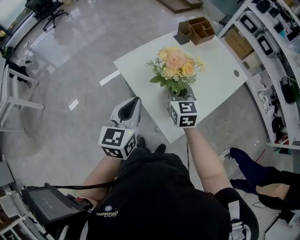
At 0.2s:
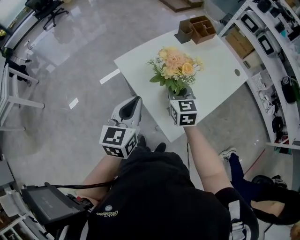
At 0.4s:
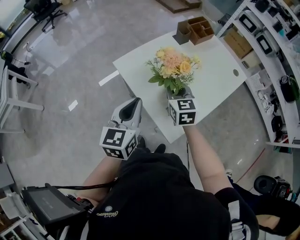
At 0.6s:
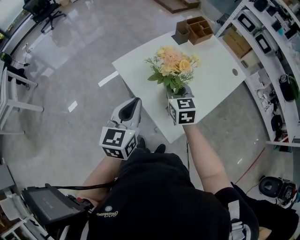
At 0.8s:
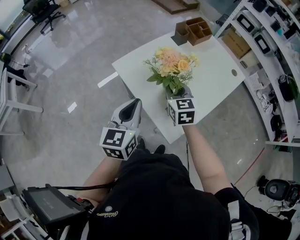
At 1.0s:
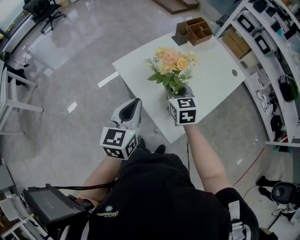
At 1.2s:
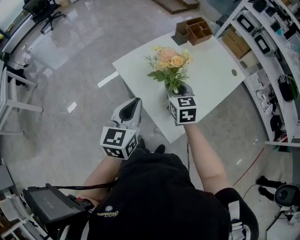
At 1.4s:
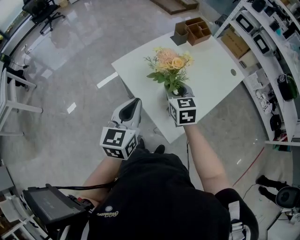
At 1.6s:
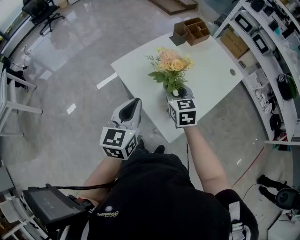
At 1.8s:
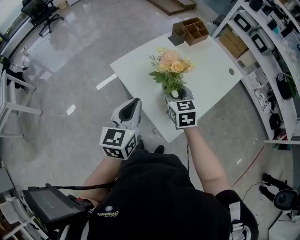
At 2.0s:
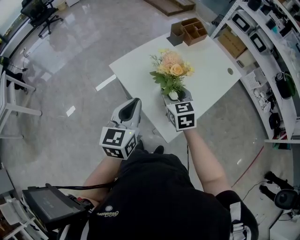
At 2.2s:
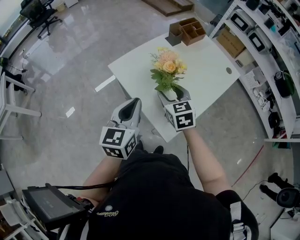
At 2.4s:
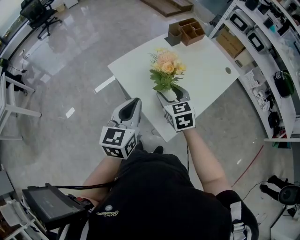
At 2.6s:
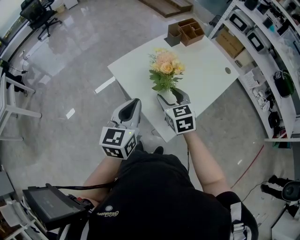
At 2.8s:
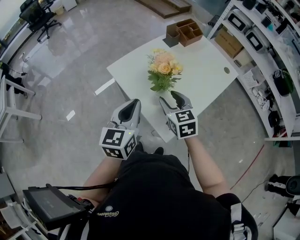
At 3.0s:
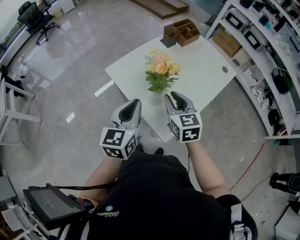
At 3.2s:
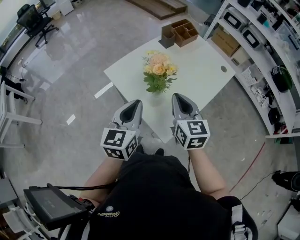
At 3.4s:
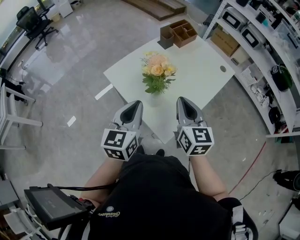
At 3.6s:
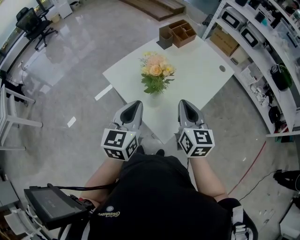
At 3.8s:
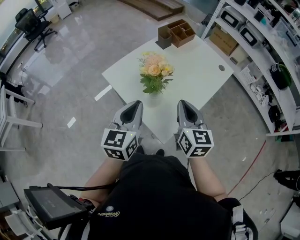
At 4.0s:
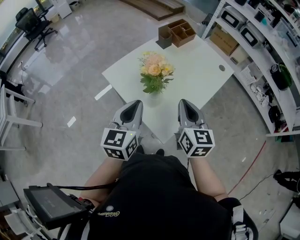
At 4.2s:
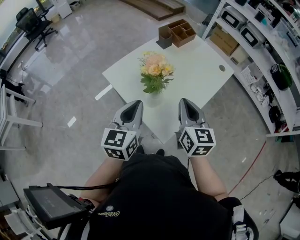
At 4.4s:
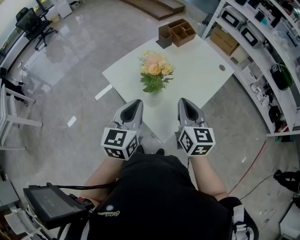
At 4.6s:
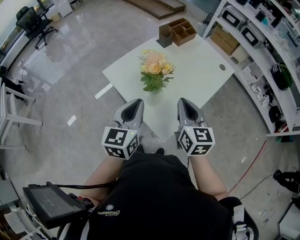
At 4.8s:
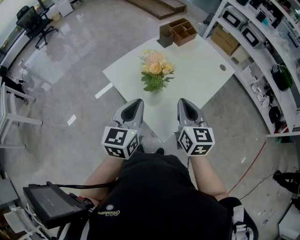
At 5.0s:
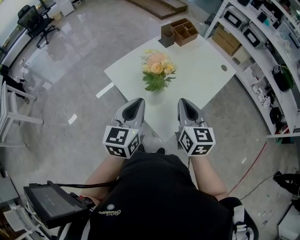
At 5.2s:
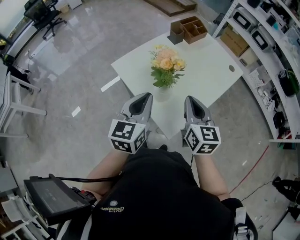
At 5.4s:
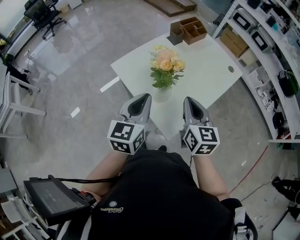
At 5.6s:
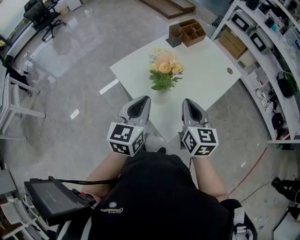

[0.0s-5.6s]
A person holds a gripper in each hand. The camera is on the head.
0.0s to 1.4s: The grippers stay close to where they were, moving slightly.
1.4s to 2.8s: The right gripper moves backward, roughly 5 cm, and opens up.
2.8s to 4.2s: The right gripper travels to the right and upward by approximately 10 cm, changes its angle by some 30 degrees, and closes.
4.2s to 5.6s: The grippers stay close to where they were, moving slightly.

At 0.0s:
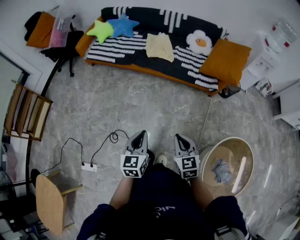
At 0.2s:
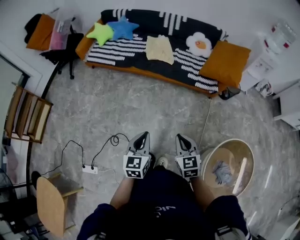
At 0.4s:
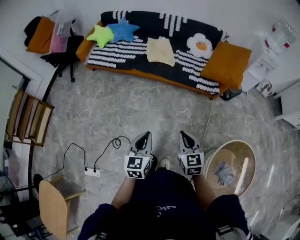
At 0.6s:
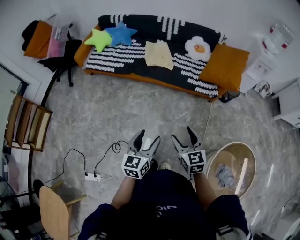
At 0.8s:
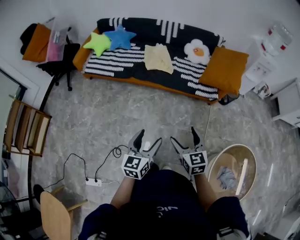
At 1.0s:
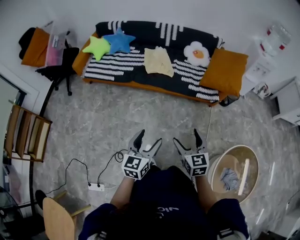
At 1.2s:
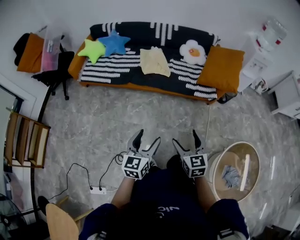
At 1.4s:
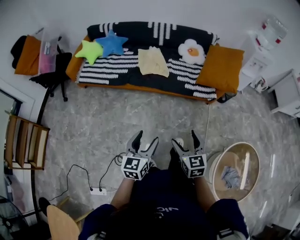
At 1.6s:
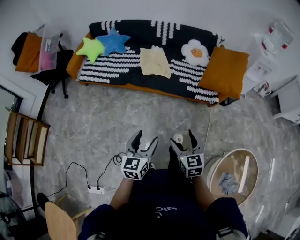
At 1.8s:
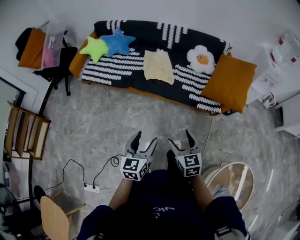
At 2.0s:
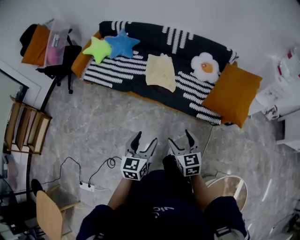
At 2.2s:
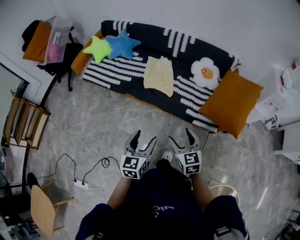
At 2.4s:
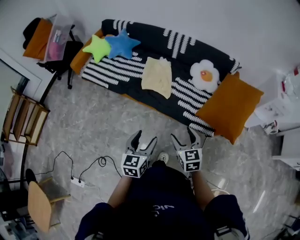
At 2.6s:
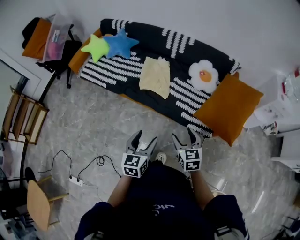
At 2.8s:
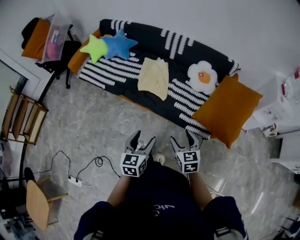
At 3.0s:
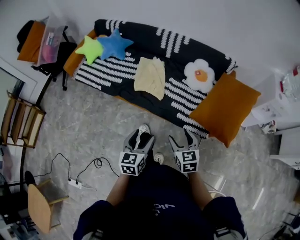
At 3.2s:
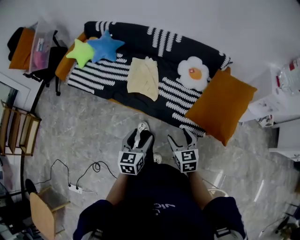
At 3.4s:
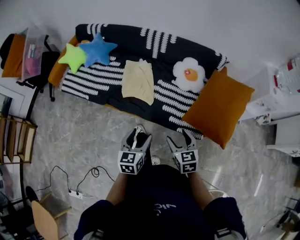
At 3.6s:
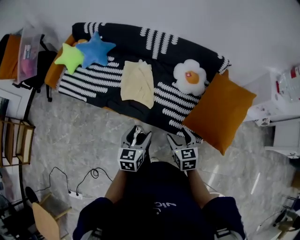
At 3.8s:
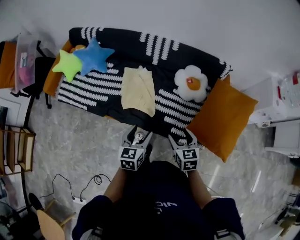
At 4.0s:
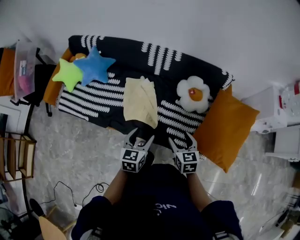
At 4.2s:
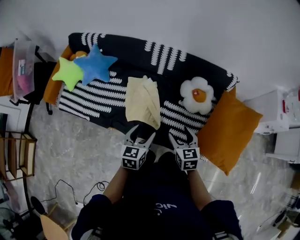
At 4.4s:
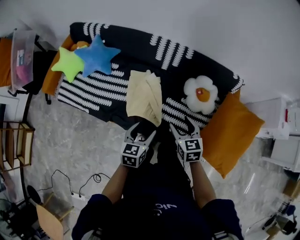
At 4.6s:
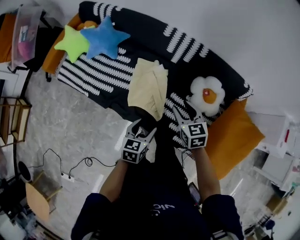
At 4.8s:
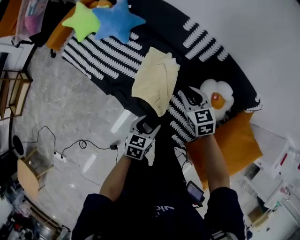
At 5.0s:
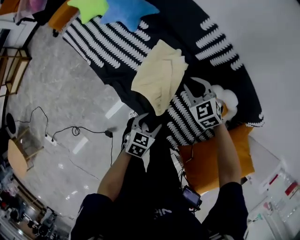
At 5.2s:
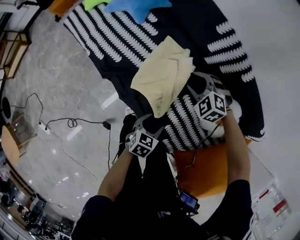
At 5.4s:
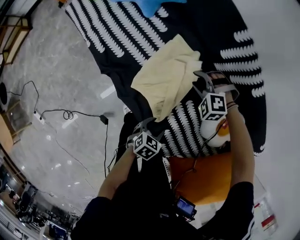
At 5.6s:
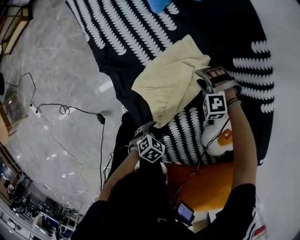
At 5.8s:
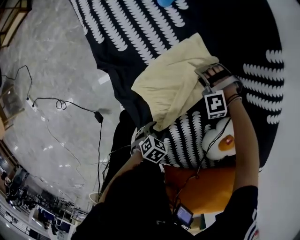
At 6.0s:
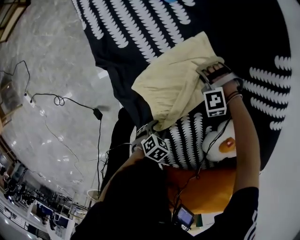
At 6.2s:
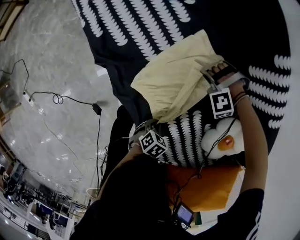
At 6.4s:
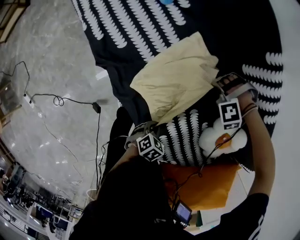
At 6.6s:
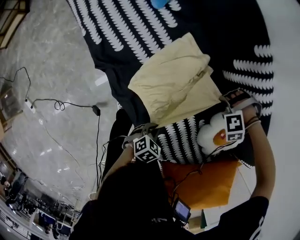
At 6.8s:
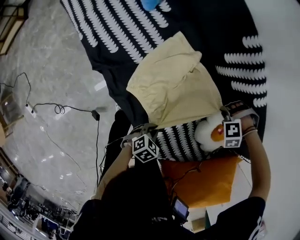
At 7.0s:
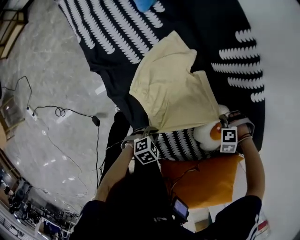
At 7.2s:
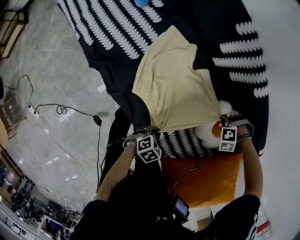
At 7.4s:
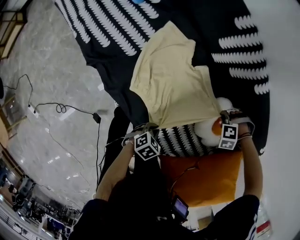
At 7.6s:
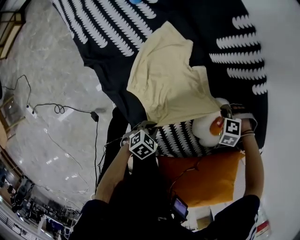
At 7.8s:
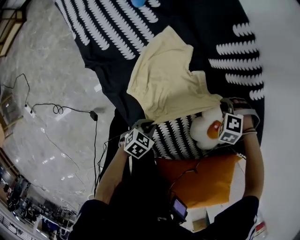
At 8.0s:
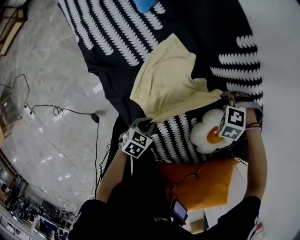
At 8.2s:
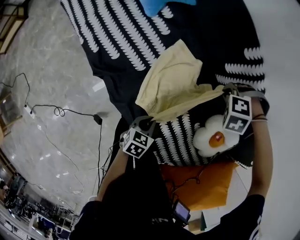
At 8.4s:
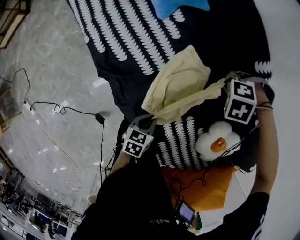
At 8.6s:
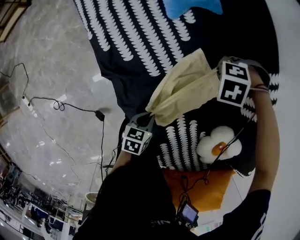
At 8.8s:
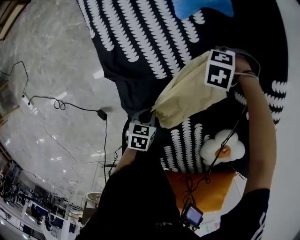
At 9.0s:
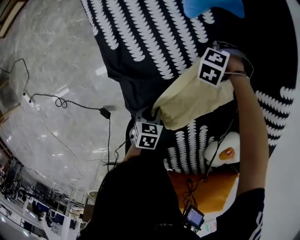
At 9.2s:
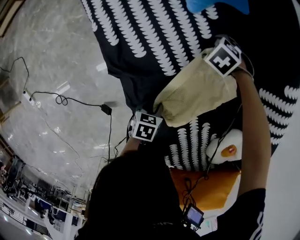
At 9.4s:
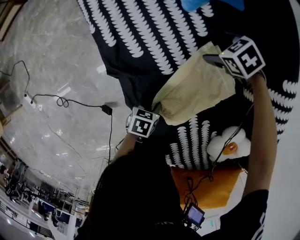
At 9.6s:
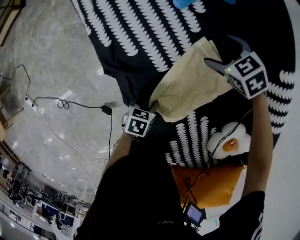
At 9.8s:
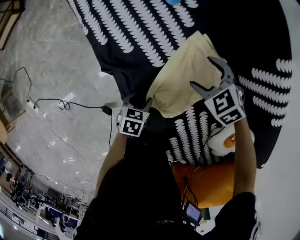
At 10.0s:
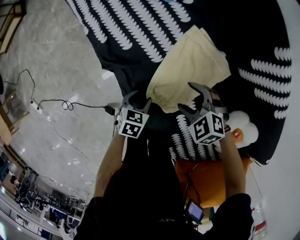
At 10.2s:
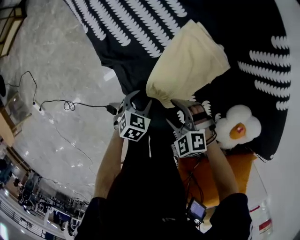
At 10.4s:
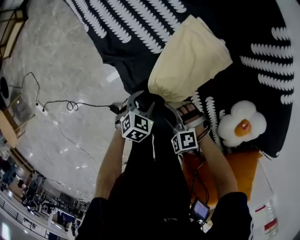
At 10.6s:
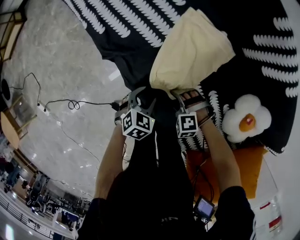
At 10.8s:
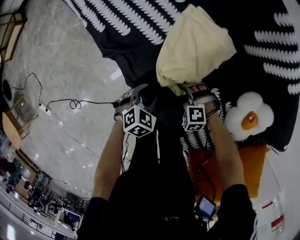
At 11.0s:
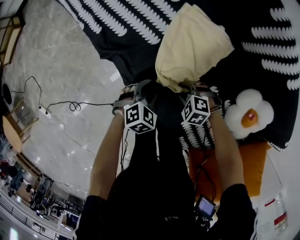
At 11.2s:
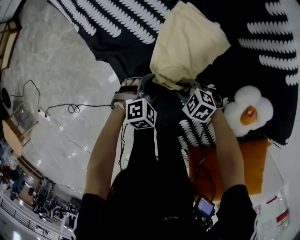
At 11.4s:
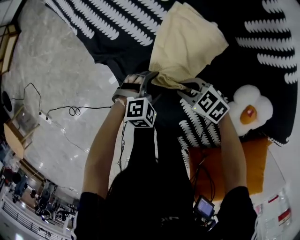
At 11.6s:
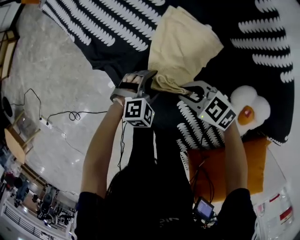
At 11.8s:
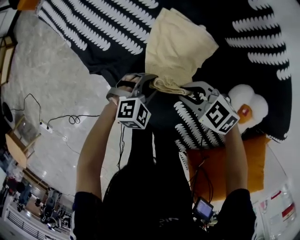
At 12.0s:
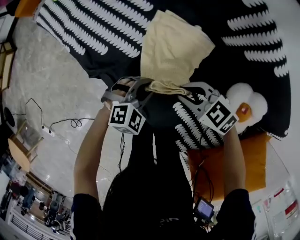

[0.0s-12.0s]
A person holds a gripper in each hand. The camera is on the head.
0.0s to 1.6s: Both grippers move forward, some 15 cm. The left gripper opens its fingers; the right gripper opens.
1.6s to 3.0s: The two grippers go approximately 30 cm forward and to the right.
3.0s to 4.4s: Both grippers move forward, some 35 cm.
4.4s to 6.0s: Both grippers move downward, some 40 cm. The left gripper tips its fingers downward by about 40 degrees. The right gripper rolls counterclockwise, seen from behind, by about 130 degrees, and closes up.
6.0s to 7.6s: The right gripper shifts by some 30 cm, and changes its angle by roughly 40 degrees, while the left gripper is displaced upward by approximately 10 cm, and closes.
7.6s to 9.0s: The right gripper changes place by approximately 50 cm. The left gripper ends up roughly 25 cm from where it was, and turns by approximately 40 degrees.
9.0s to 10.4s: The right gripper ends up roughly 40 cm from where it was, changes its angle by roughly 40 degrees, and opens its fingers. The left gripper changes place by roughly 5 cm, and turns by roughly 40 degrees.
10.4s to 12.0s: The left gripper changes place by approximately 10 cm, rotates around the line of its fingers by some 50 degrees, clockwise from behind, and closes its fingers. The right gripper changes place by about 15 cm, rotates around the line of its fingers by roughly 50 degrees, clockwise from behind, and closes its fingers.

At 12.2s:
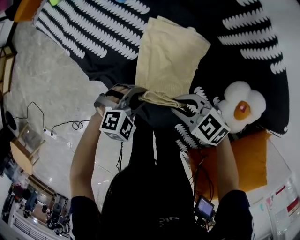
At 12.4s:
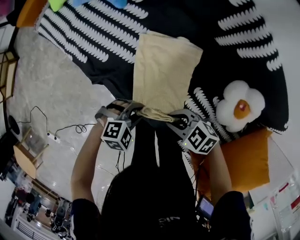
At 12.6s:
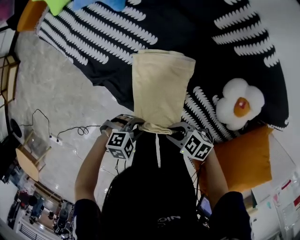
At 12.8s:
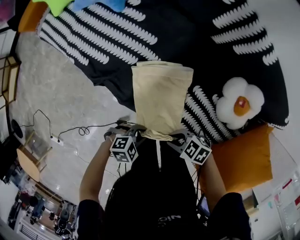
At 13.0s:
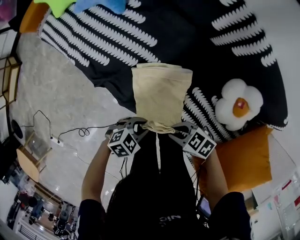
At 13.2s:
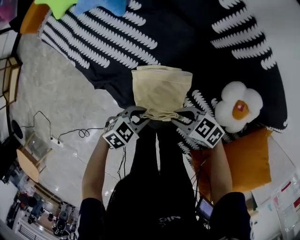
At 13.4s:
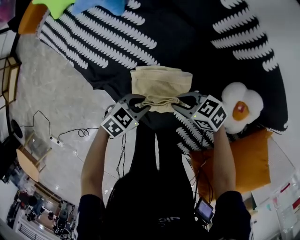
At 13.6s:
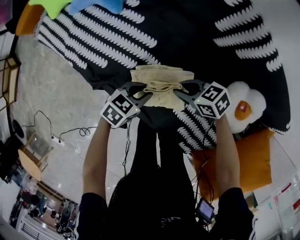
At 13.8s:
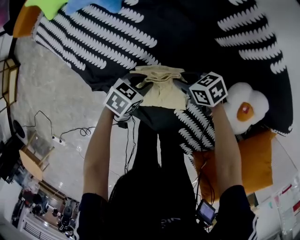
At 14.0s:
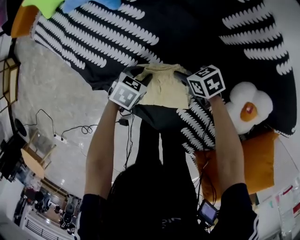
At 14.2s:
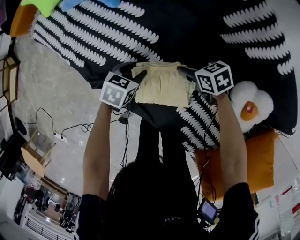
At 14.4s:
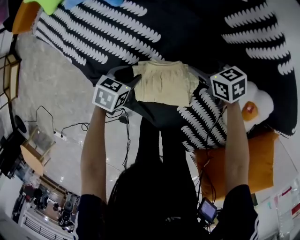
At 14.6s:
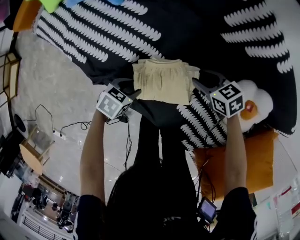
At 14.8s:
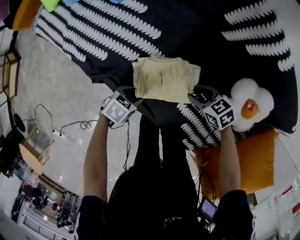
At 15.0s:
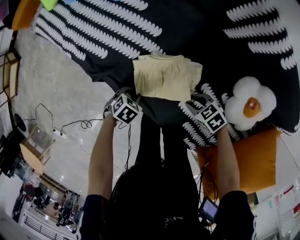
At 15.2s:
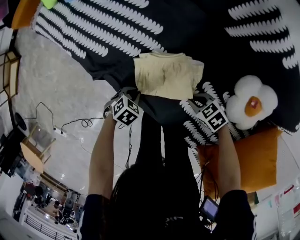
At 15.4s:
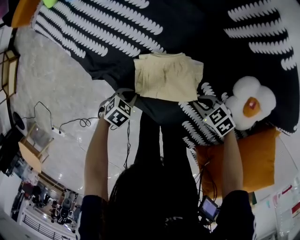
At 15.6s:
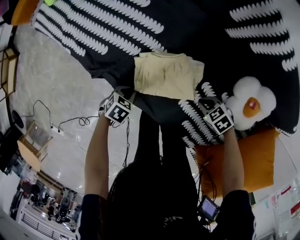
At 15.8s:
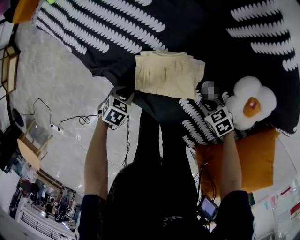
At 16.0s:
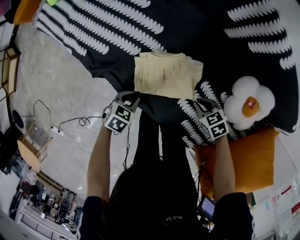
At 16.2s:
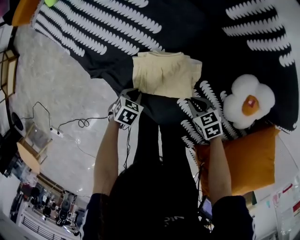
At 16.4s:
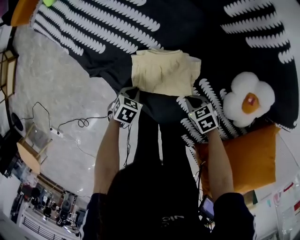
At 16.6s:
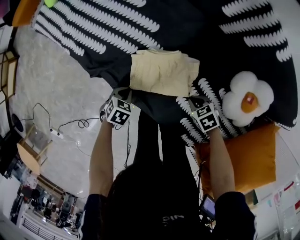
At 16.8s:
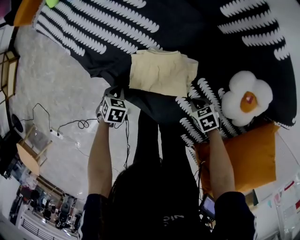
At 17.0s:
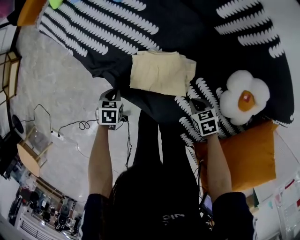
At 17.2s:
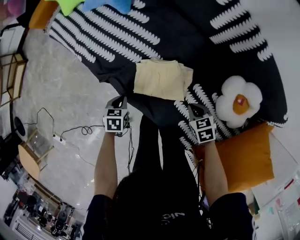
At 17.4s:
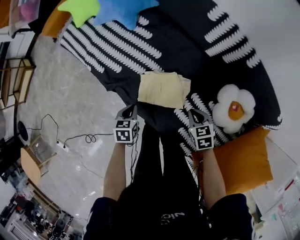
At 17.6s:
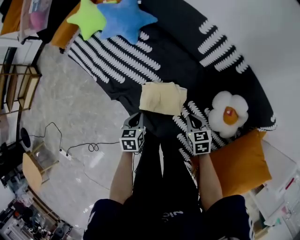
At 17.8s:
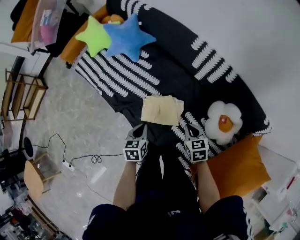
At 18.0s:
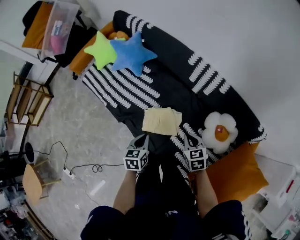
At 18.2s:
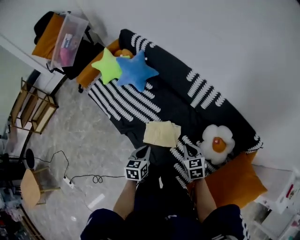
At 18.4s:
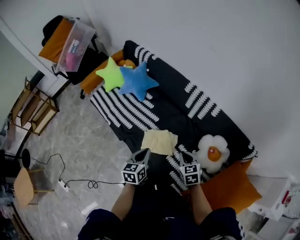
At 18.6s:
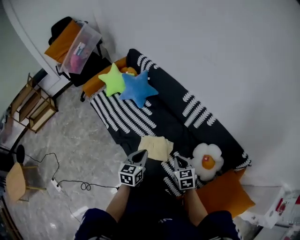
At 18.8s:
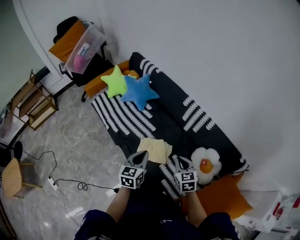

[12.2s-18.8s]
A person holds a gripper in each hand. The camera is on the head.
12.2s to 13.8s: The left gripper twists approximately 40 degrees counterclockwise, seen from behind; the right gripper shifts by some 15 cm, and changes its angle by some 30 degrees.
13.8s to 15.4s: The right gripper moves about 15 cm, and opens and closes again. Meanwhile the left gripper changes place by some 15 cm, and opens, then closes once more.
15.4s to 17.2s: Both grippers move upward, roughly 5 cm. The left gripper turns by about 40 degrees; the right gripper changes its angle by roughly 30 degrees.
17.2s to 18.8s: Both grippers travel together upward, roughly 40 cm. The left gripper tilts its fingers about 40 degrees upward, while the right gripper changes its angle by about 30 degrees.
